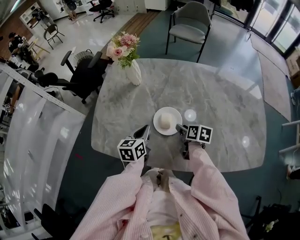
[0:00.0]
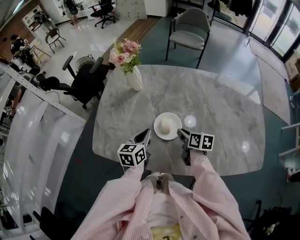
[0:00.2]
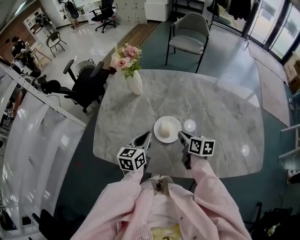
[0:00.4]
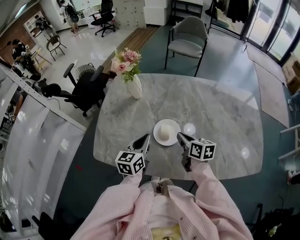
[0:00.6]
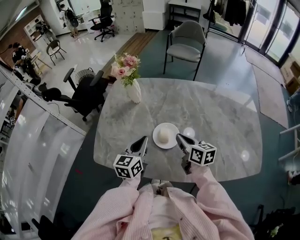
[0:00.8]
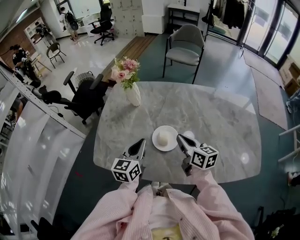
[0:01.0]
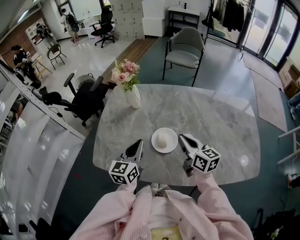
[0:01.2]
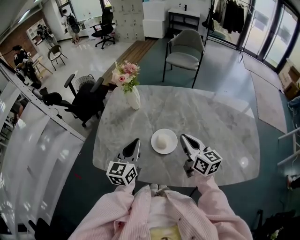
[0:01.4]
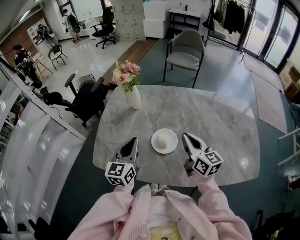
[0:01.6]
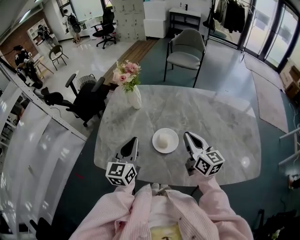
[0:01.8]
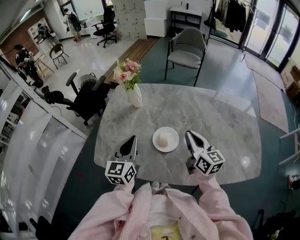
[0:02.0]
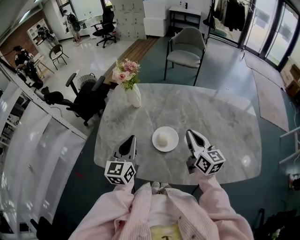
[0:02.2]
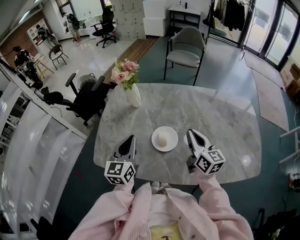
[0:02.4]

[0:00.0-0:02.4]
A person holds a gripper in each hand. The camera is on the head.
0:00.0 to 0:01.2: The left gripper travels upward by roughly 10 cm, and turns by approximately 20 degrees.

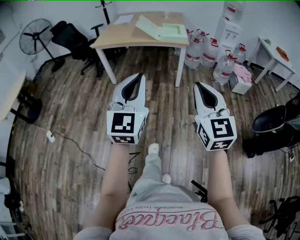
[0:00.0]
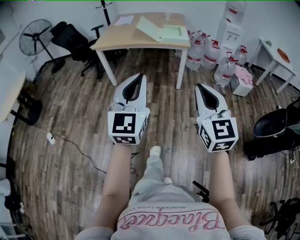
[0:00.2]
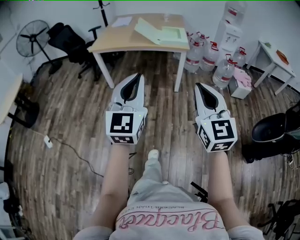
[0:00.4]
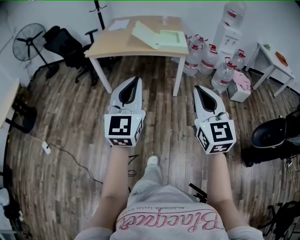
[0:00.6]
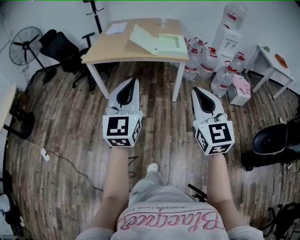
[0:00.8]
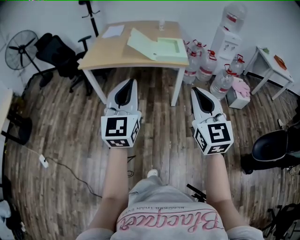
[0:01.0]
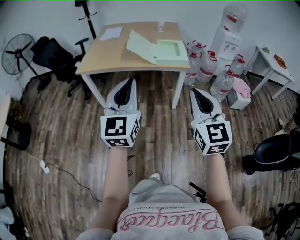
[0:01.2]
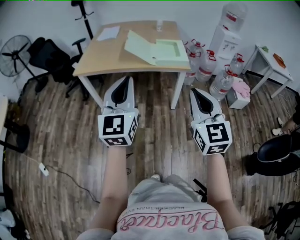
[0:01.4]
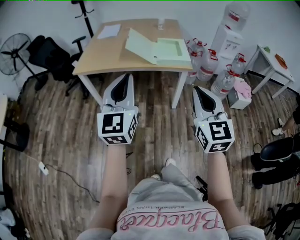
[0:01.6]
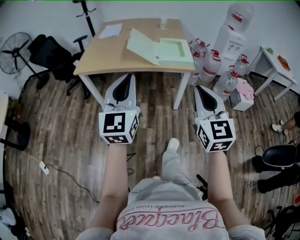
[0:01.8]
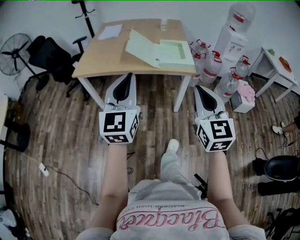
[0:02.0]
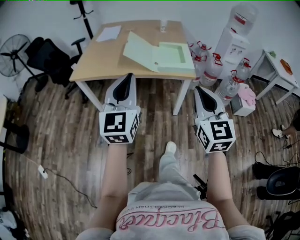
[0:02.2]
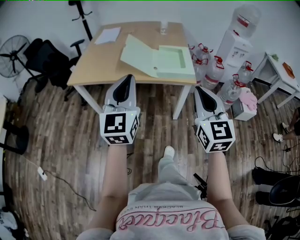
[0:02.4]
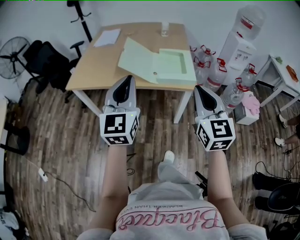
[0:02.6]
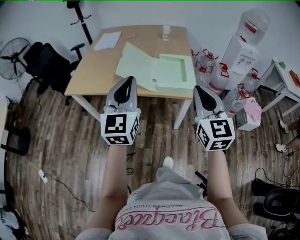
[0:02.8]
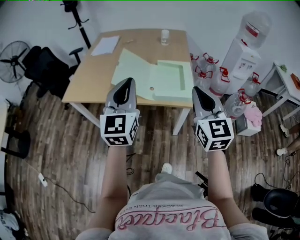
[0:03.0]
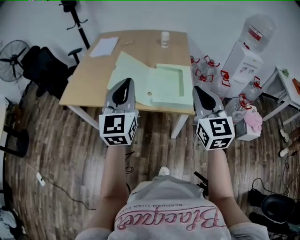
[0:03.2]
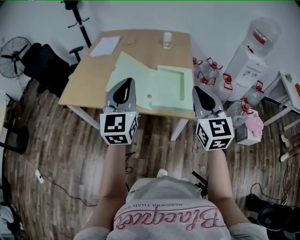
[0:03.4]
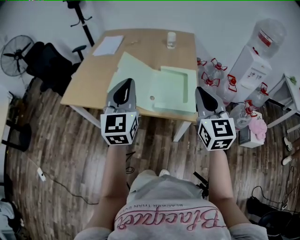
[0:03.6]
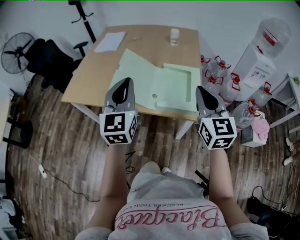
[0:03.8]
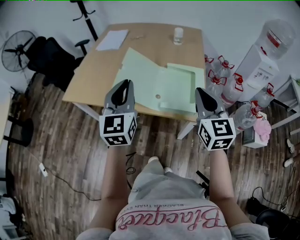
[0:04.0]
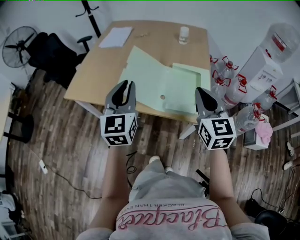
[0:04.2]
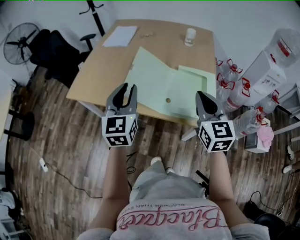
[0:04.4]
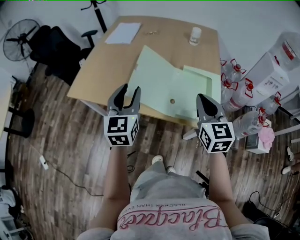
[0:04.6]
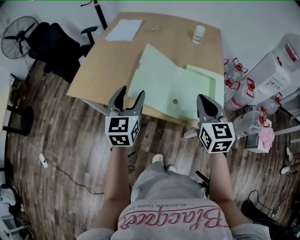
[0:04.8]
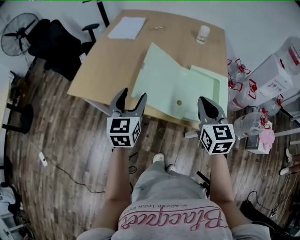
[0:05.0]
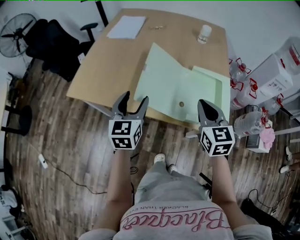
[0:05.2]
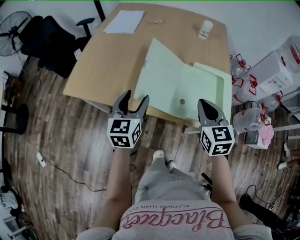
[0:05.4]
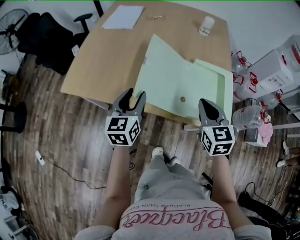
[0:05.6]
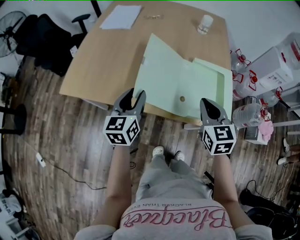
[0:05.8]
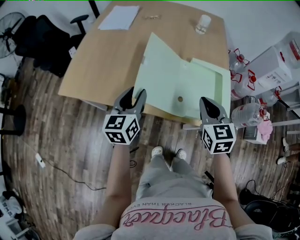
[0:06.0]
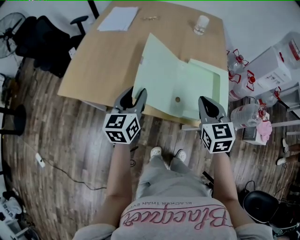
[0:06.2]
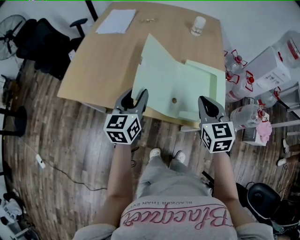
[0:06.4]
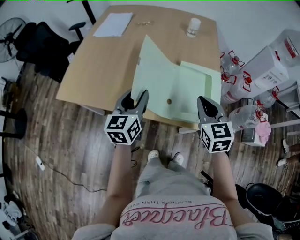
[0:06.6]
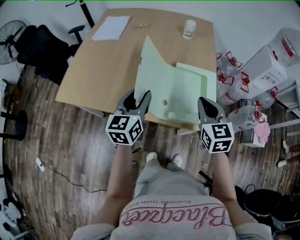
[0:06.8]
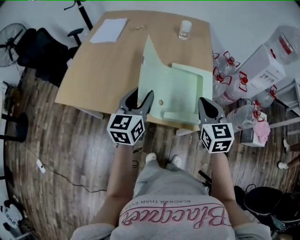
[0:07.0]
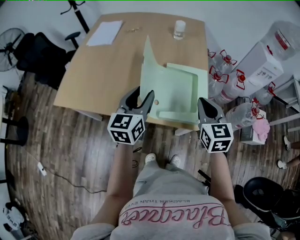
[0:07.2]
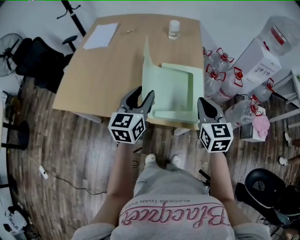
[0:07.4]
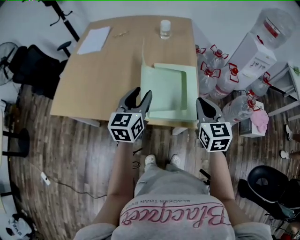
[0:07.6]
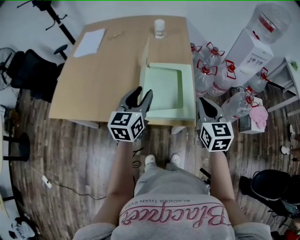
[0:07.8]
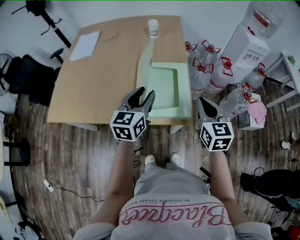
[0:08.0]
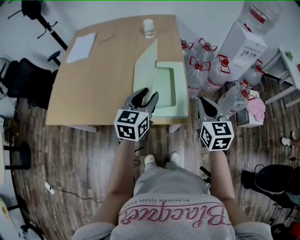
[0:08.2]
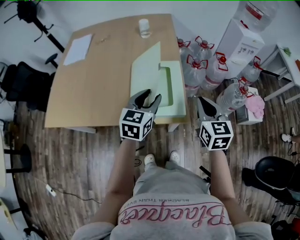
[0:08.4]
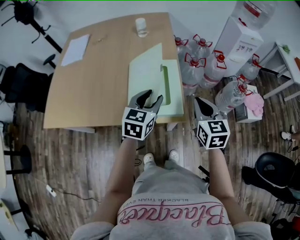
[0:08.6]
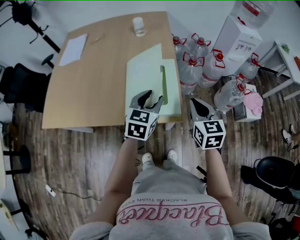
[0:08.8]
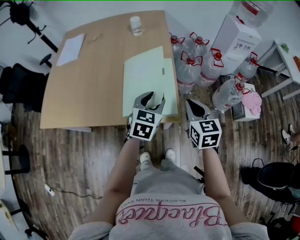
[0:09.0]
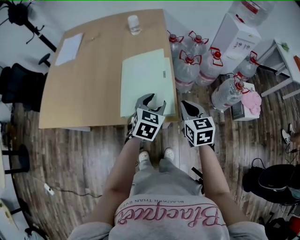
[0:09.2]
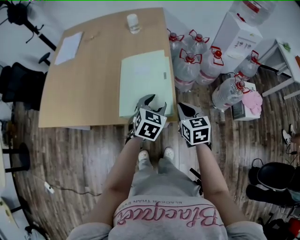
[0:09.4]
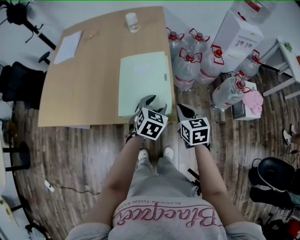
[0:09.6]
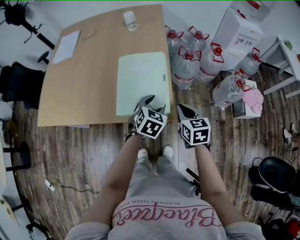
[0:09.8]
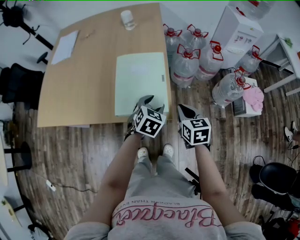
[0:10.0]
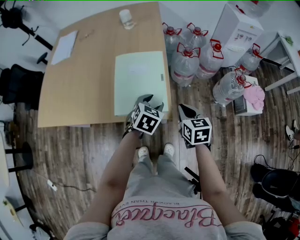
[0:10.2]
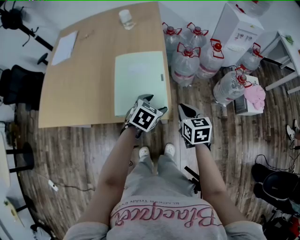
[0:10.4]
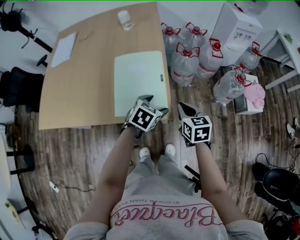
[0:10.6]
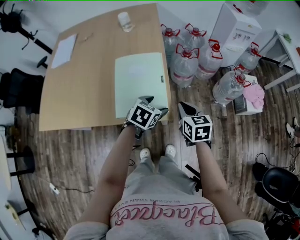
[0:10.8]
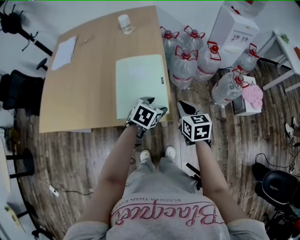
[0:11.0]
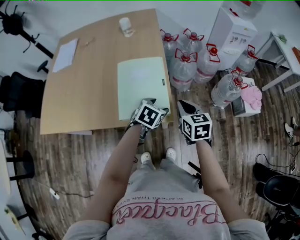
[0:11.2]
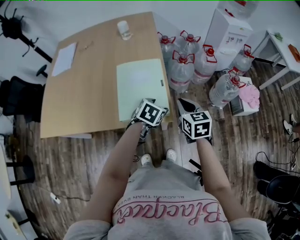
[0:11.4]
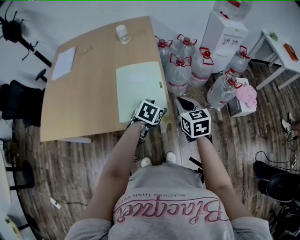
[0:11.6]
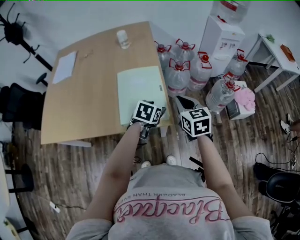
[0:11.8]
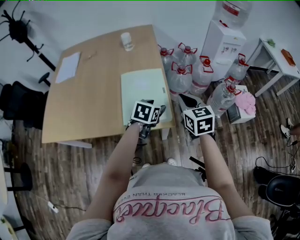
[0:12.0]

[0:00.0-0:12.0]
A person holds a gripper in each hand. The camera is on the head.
0:00.0 to 0:01.6: The grippers both shift forward by approximately 35 cm.
0:01.6 to 0:03.0: Both grippers travel together forward, about 30 cm.
0:03.0 to 0:04.4: The right gripper is displaced forward by about 15 cm, while the left gripper heads forward, downward and to the left, covering some 15 cm.
0:04.4 to 0:06.0: Both grippers travel together downward and forward, about 10 cm. The left gripper changes its angle by approximately 20 degrees.
0:06.0 to 0:07.6: Both grippers travel together to the right, roughly 15 cm.
0:07.6 to 0:09.0: The left gripper shifts roughly 20 cm to the right and downward, and changes its angle by roughly 30 degrees. Meanwhile the right gripper moves to the right and downward, roughly 10 cm.
0:09.0 to 0:10.4: The right gripper is displaced downward by some 10 cm. Meanwhile the left gripper moves downward and to the right, approximately 10 cm, and turns by approximately 20 degrees.
0:10.4 to 0:12.0: The right gripper shifts approximately 10 cm upward.

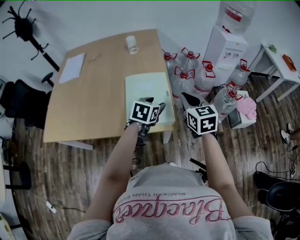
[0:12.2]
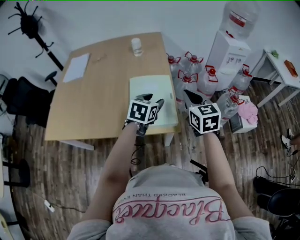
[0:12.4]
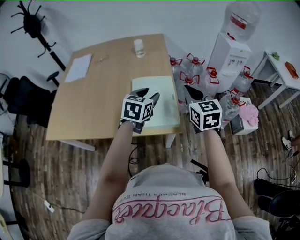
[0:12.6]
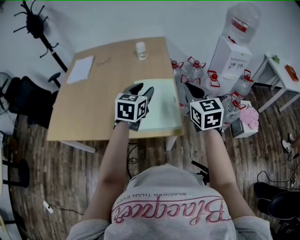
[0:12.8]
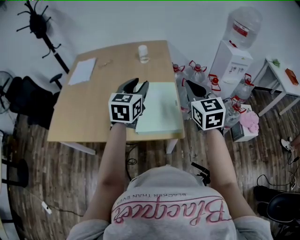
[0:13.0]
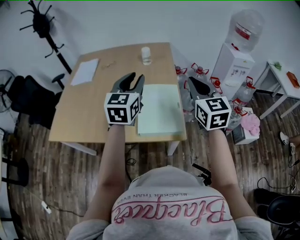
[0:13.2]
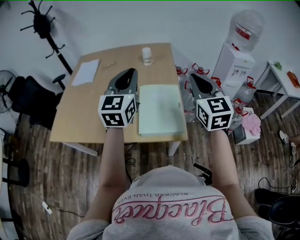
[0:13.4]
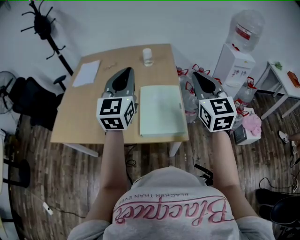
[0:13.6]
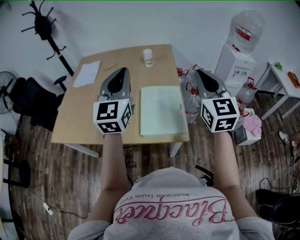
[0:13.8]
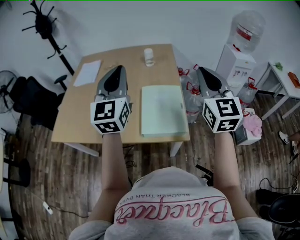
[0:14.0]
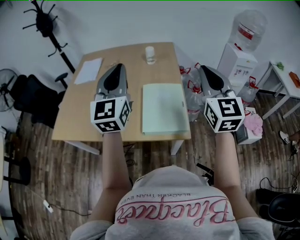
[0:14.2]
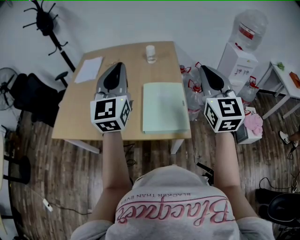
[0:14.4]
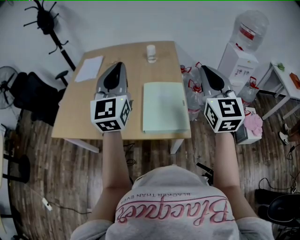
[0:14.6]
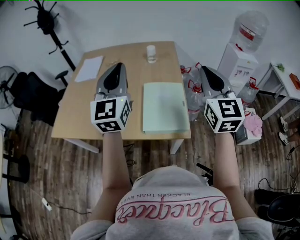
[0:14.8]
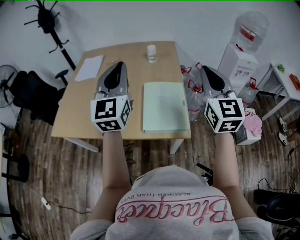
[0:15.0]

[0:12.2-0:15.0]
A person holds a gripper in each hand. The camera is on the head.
0:12.2 to 0:13.6: The right gripper heads upward, covering about 20 cm, and changes its angle by about 30 degrees, while the left gripper heads upward and to the left, covering approximately 30 cm, points its fingers roughly 50 degrees further upward, and closes up.
0:13.6 to 0:15.0: The left gripper moves some 5 cm.

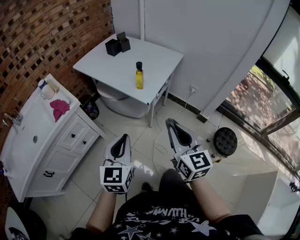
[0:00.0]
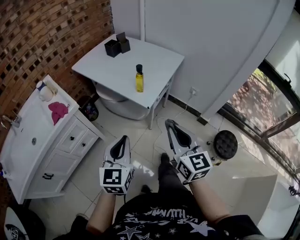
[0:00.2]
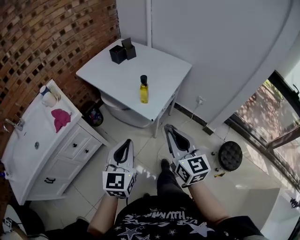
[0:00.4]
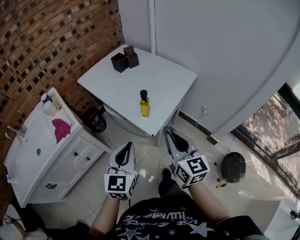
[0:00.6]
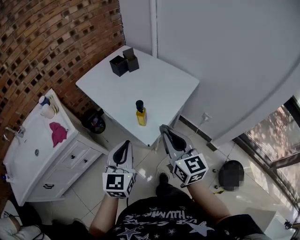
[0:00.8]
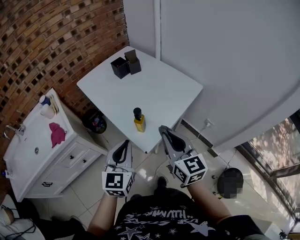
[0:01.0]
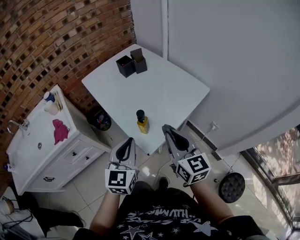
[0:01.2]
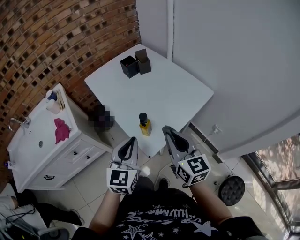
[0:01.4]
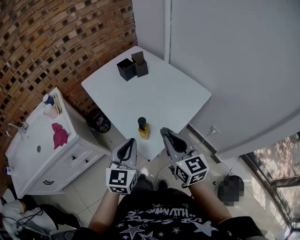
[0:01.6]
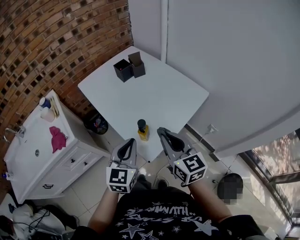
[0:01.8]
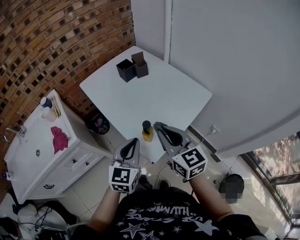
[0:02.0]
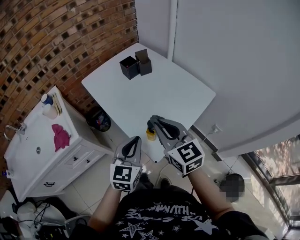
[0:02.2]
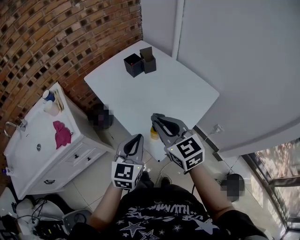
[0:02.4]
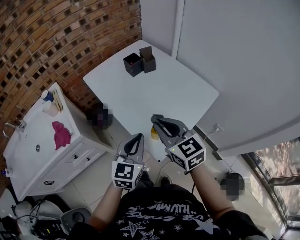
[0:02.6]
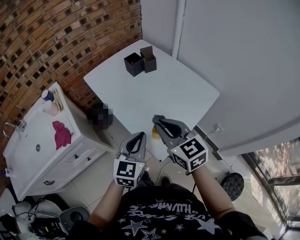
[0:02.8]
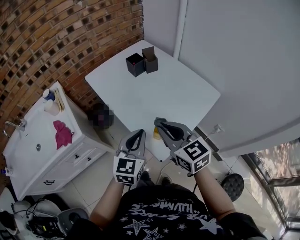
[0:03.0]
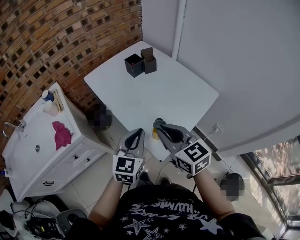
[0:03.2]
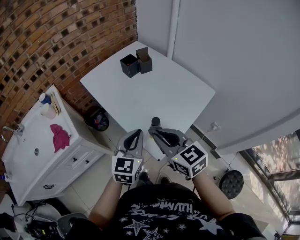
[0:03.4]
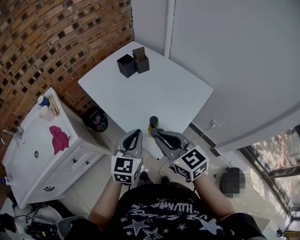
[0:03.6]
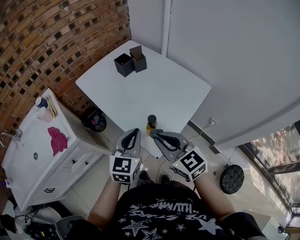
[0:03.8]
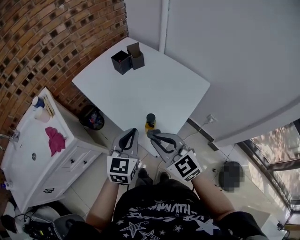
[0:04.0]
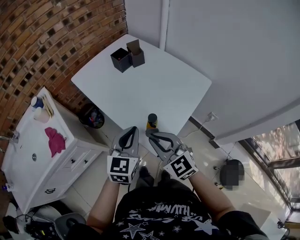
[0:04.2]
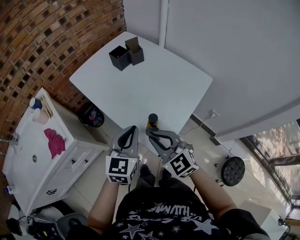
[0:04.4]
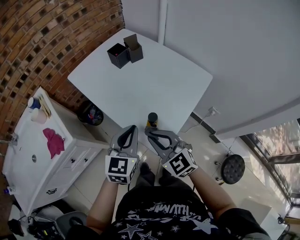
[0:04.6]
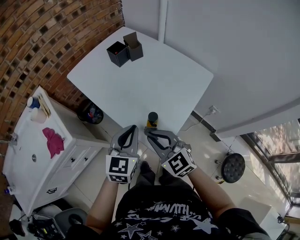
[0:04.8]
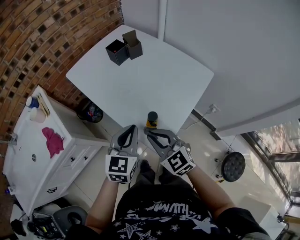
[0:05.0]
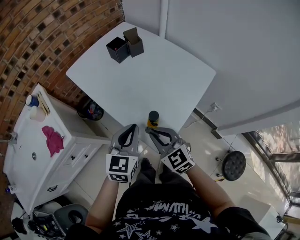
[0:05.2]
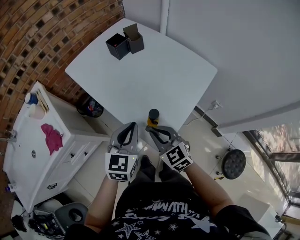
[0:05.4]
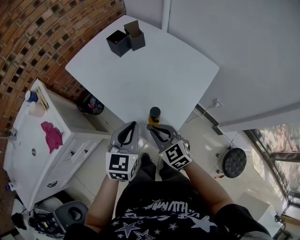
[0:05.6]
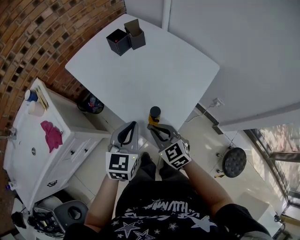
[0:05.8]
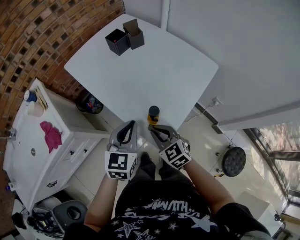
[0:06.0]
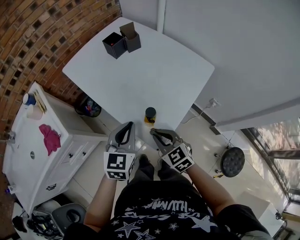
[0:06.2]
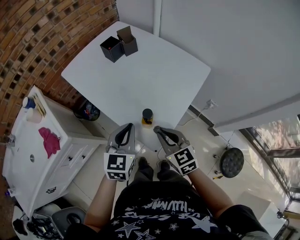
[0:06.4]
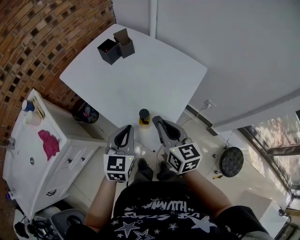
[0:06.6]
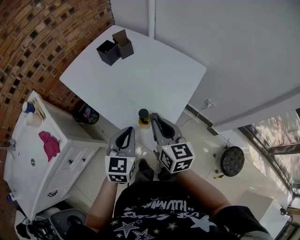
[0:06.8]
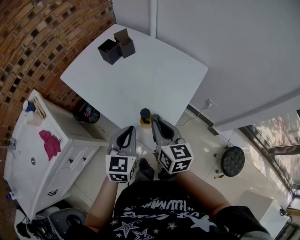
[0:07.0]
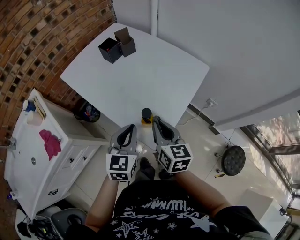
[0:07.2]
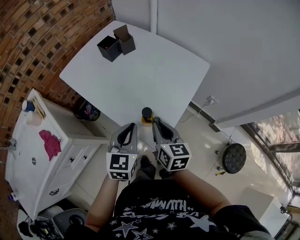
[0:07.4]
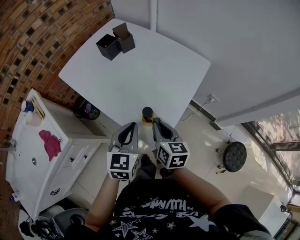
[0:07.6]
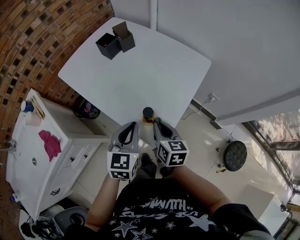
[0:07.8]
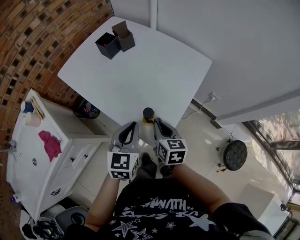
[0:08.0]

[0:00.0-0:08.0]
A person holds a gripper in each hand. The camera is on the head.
0:00.0 to 0:01.6: The grippers both shift forward by roughly 25 cm. The right gripper changes its angle by about 20 degrees.
0:01.6 to 0:03.2: The right gripper is displaced to the left by some 10 cm. Meanwhile the left gripper is displaced forward by about 5 cm.
0:03.2 to 0:04.8: The right gripper travels downward by about 10 cm, and rotates about 20 degrees.
0:04.8 to 0:06.4: The right gripper shifts roughly 10 cm to the right and downward, and changes its angle by some 20 degrees.
0:06.4 to 0:08.0: The right gripper shifts roughly 5 cm downward, and turns by approximately 30 degrees.
